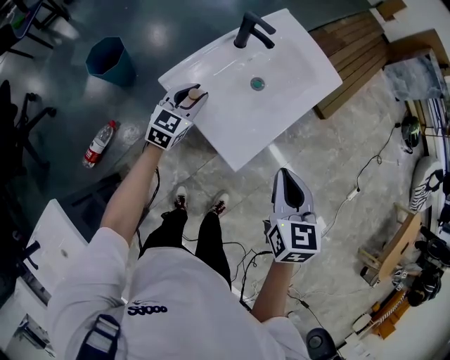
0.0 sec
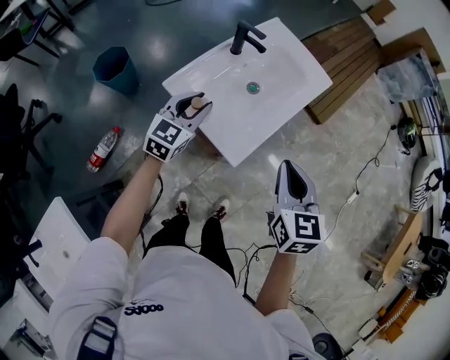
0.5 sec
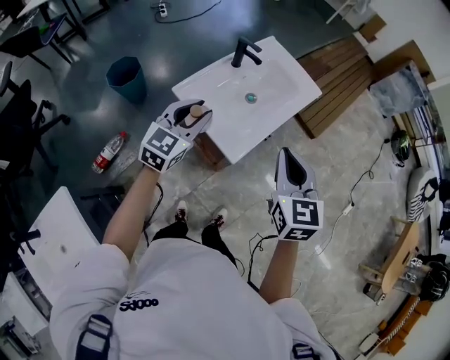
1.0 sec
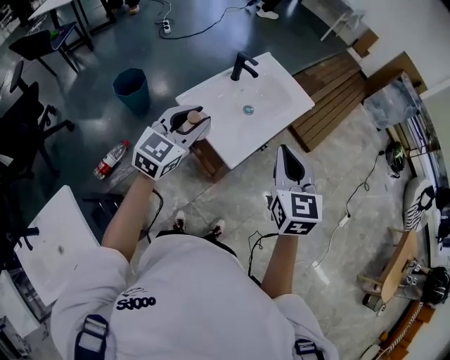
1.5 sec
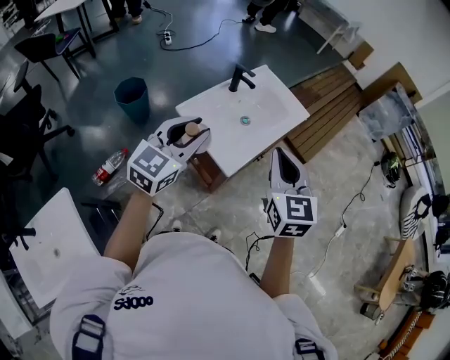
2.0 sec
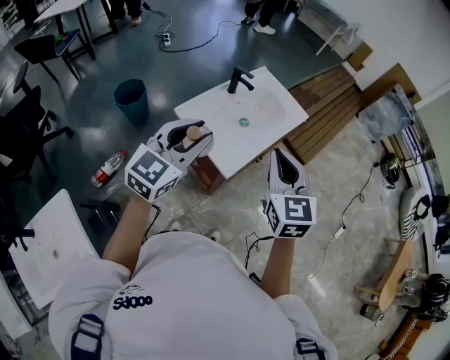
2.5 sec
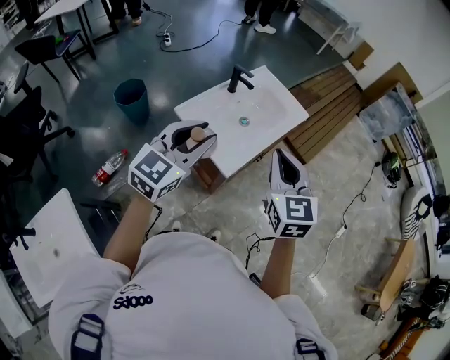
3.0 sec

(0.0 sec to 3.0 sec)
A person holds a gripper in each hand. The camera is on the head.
0.0 sec - 1.5 sec: The left gripper shifts some 30 cm upward and backward; the right gripper is displaced upward by about 15 cm.
1.5 sec - 3.0 sec: The left gripper travels upward by roughly 5 cm.

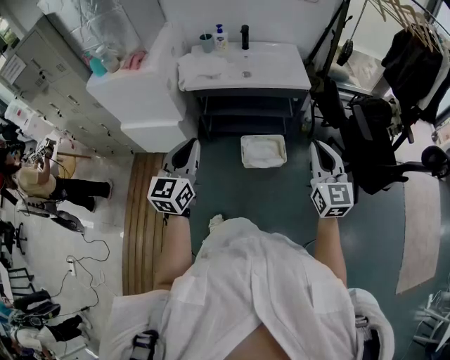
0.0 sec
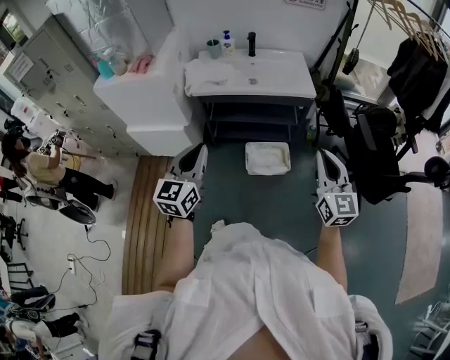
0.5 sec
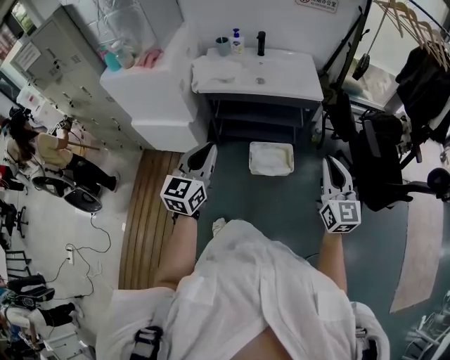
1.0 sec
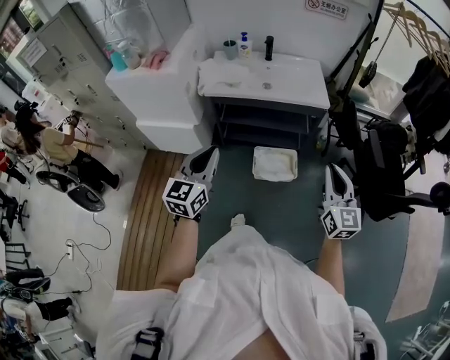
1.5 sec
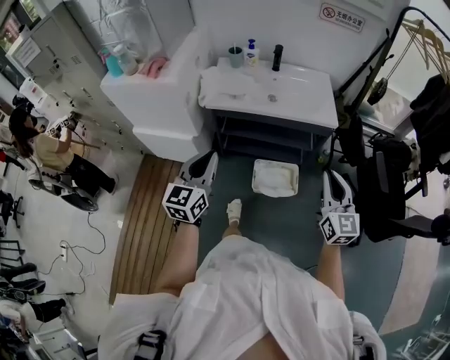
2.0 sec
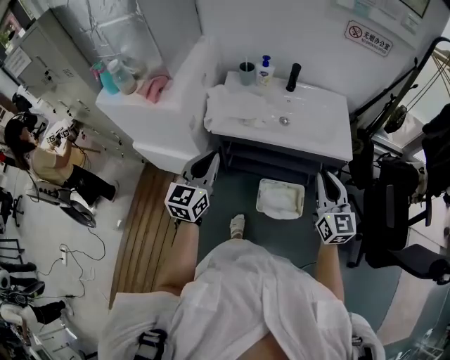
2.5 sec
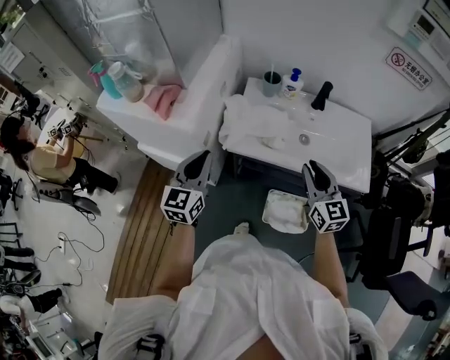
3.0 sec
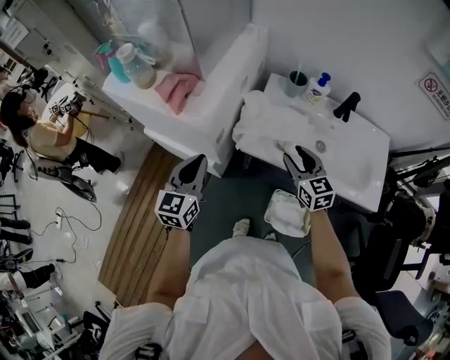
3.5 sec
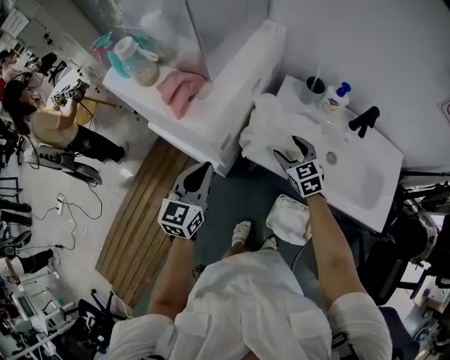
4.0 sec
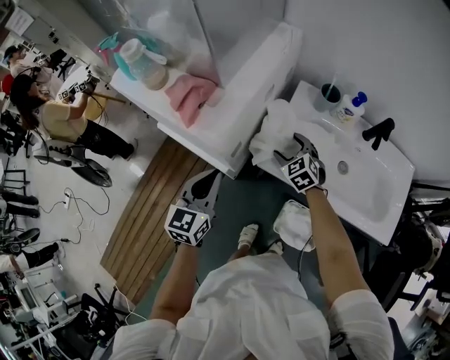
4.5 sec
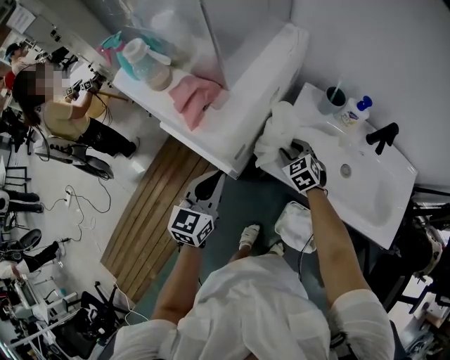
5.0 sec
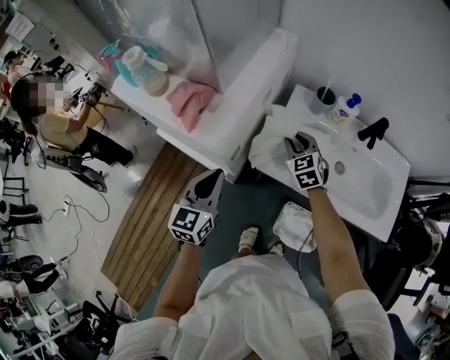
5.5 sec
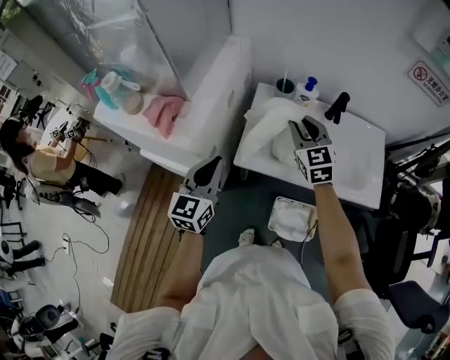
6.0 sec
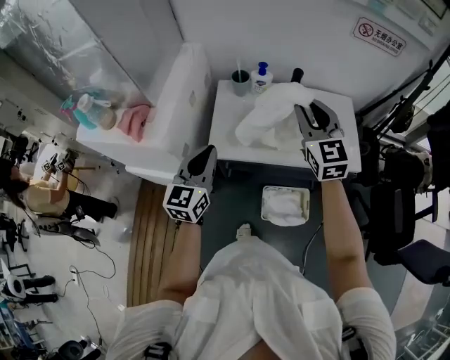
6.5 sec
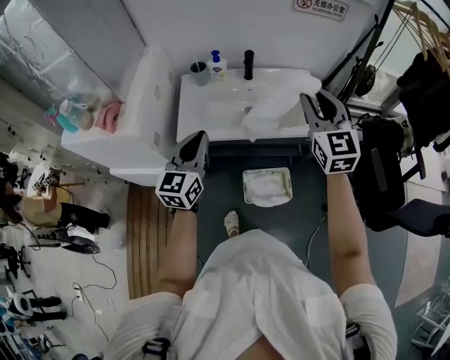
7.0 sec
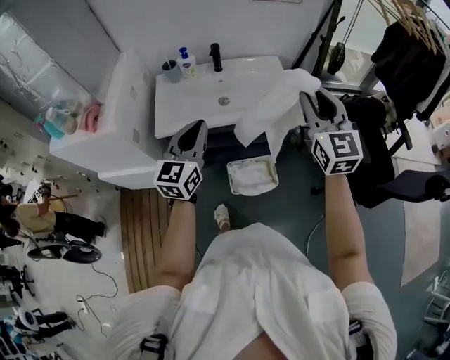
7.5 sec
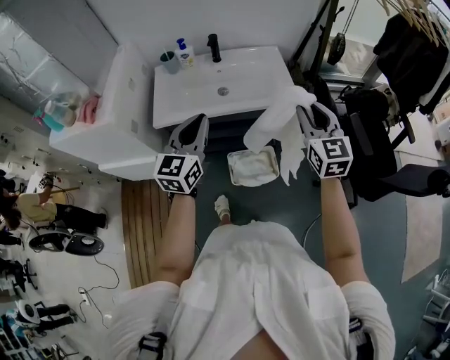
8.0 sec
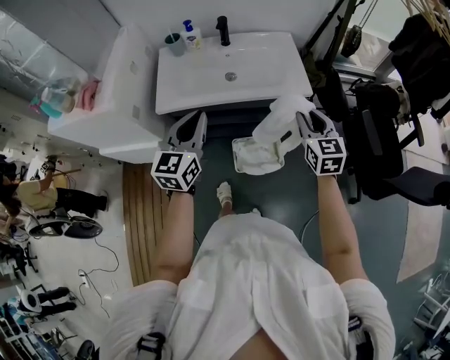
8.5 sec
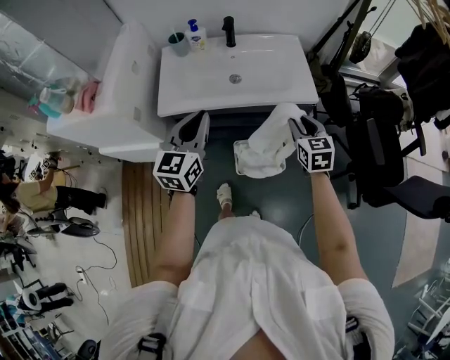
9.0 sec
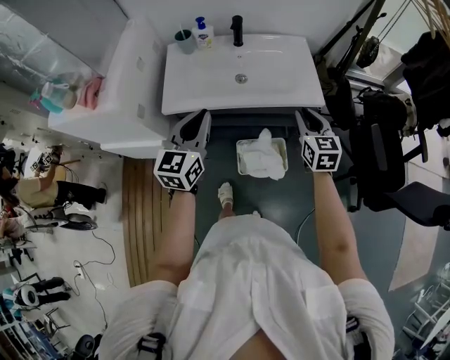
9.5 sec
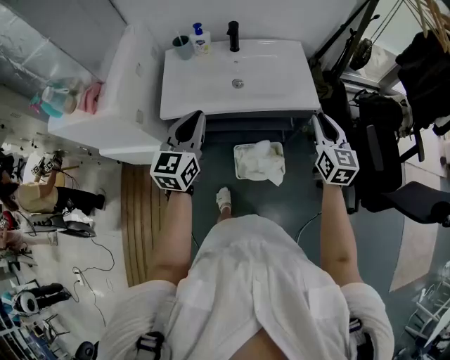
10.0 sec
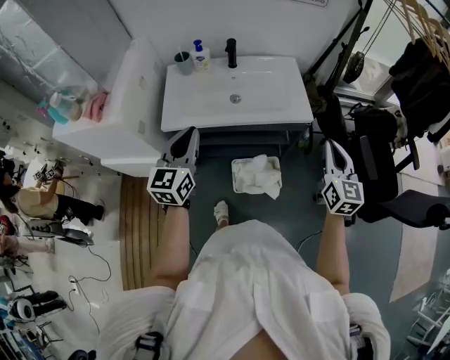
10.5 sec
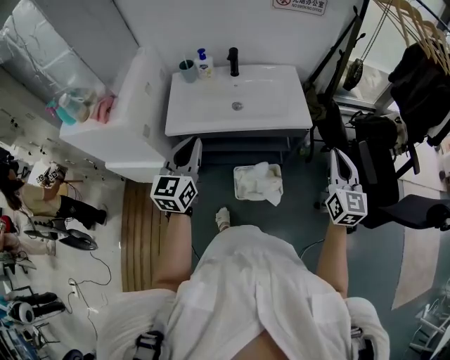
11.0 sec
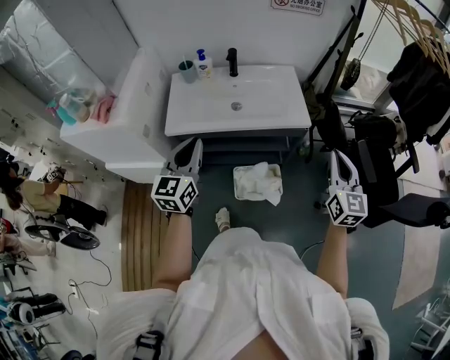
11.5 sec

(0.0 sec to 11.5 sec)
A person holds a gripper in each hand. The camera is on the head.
0.0 sec - 2.0 sec: The grippers both shift forward by roughly 10 cm.
2.0 sec - 4.0 sec: The right gripper moves approximately 70 cm, tilts its fingers some 30 degrees downward, and opens. The left gripper shifts by about 40 cm, and swivels about 20 degrees.
4.0 sec - 6.0 sec: The left gripper heads to the right and upward, covering some 10 cm. The right gripper moves upward and to the right, about 20 cm, rotates some 30 degrees, and closes its fingers.
6.0 sec - 7.5 sec: The right gripper goes roughly 50 cm to the right, backward and upward, and changes its angle by roughly 30 degrees, while the left gripper heads to the right and backward, covering about 30 cm, and changes its angle by some 20 degrees.
7.5 sec - 9.5 sec: The left gripper moves downward, some 5 cm. The right gripper heads downward, covering approximately 25 cm, and changes its angle by approximately 30 degrees.
9.5 sec - 11.5 sec: The left gripper is displaced backward by some 5 cm; the right gripper travels backward, to the right and upward by roughly 20 cm, and changes its angle by some 20 degrees.

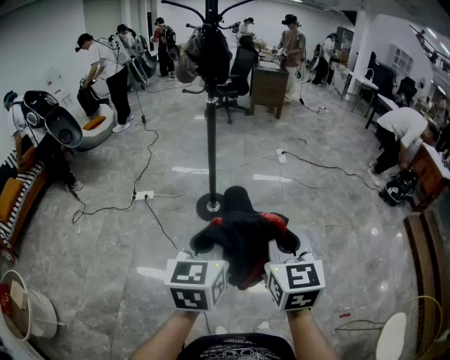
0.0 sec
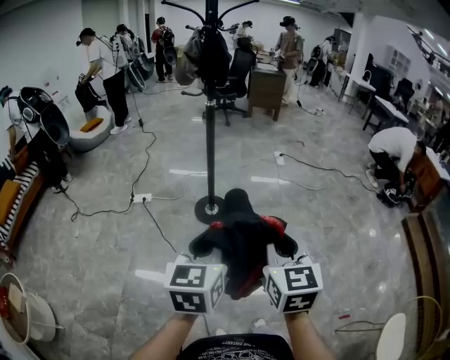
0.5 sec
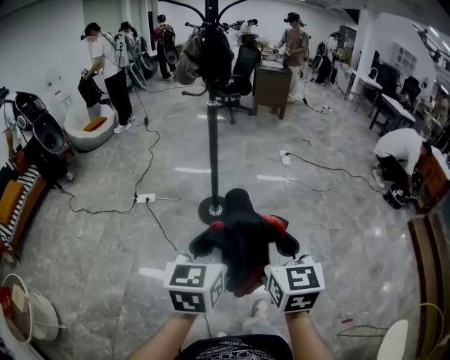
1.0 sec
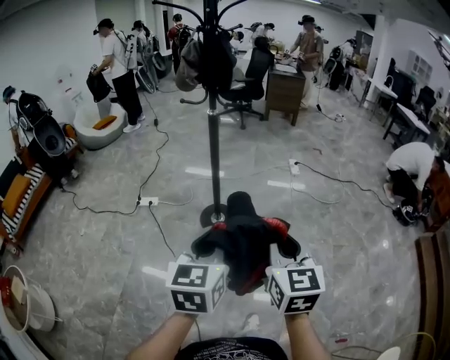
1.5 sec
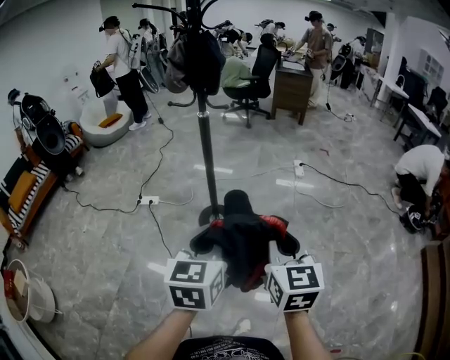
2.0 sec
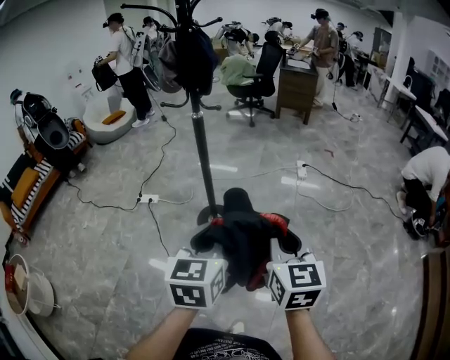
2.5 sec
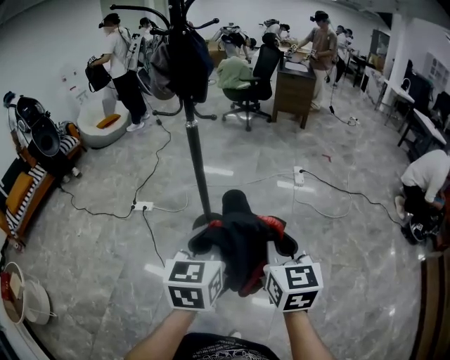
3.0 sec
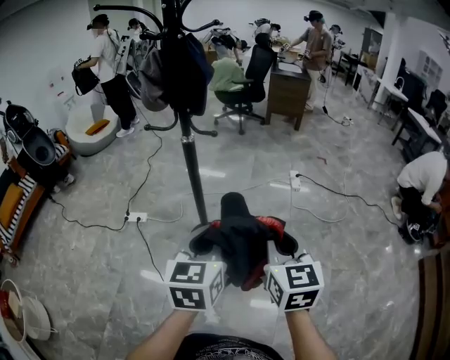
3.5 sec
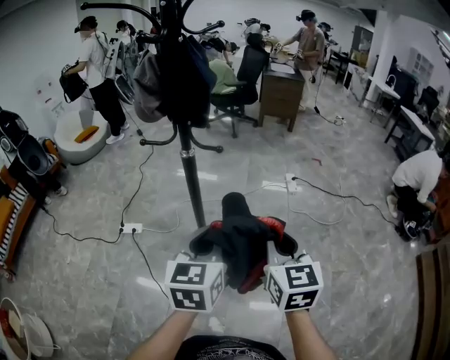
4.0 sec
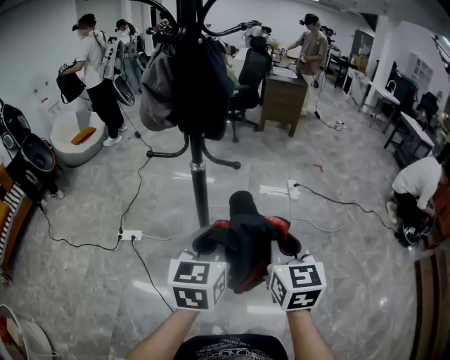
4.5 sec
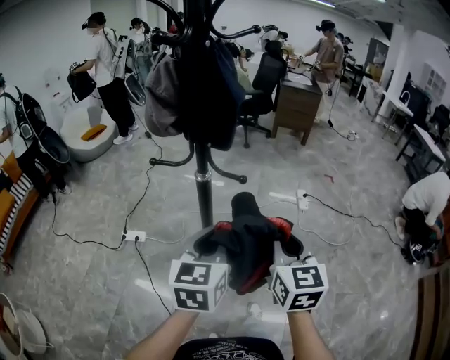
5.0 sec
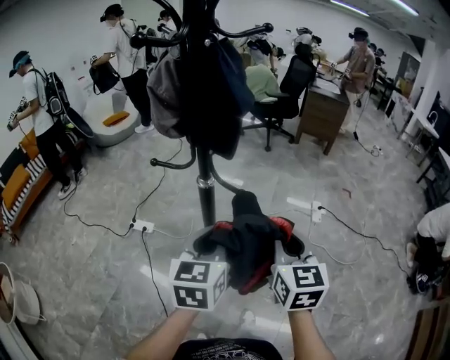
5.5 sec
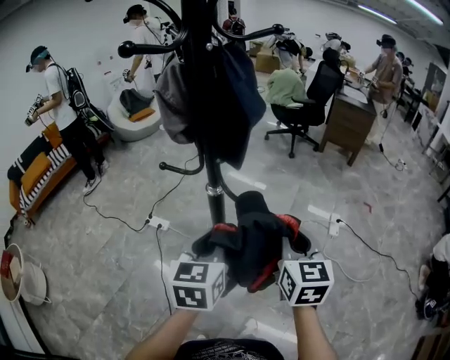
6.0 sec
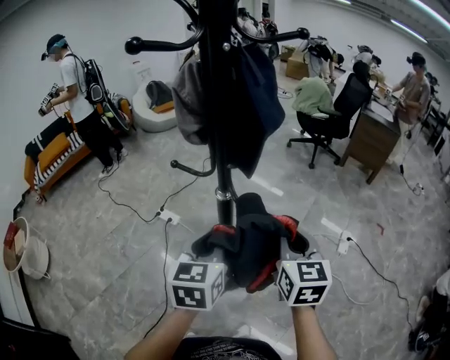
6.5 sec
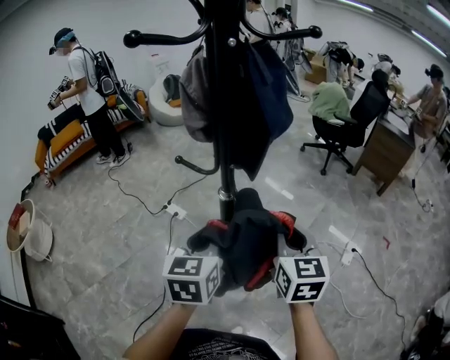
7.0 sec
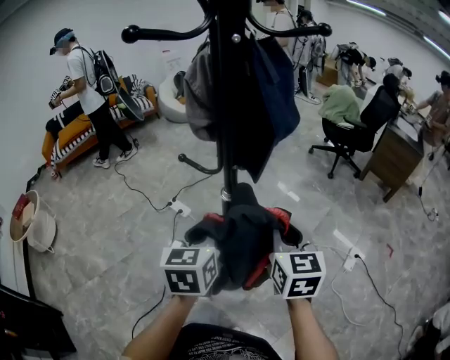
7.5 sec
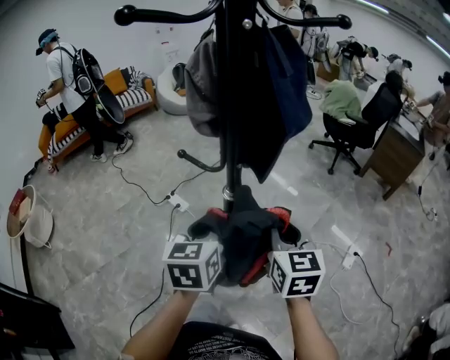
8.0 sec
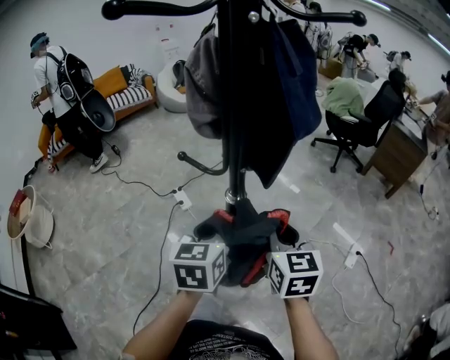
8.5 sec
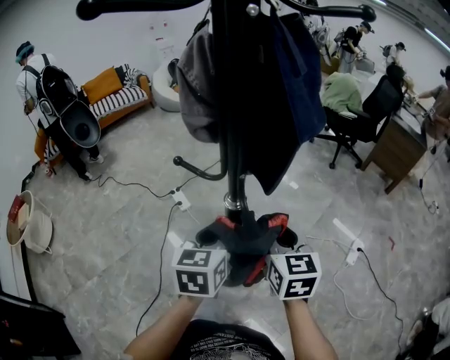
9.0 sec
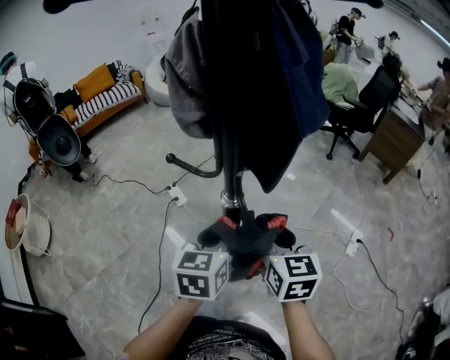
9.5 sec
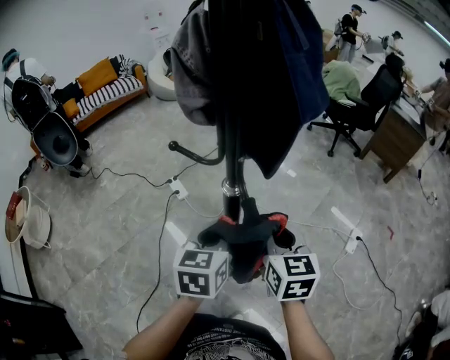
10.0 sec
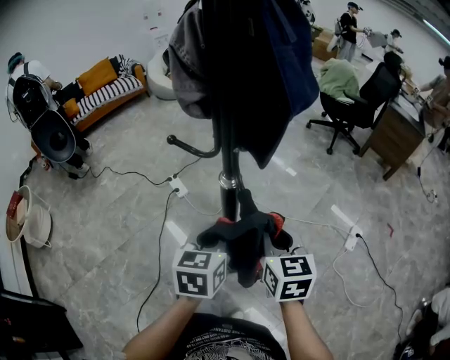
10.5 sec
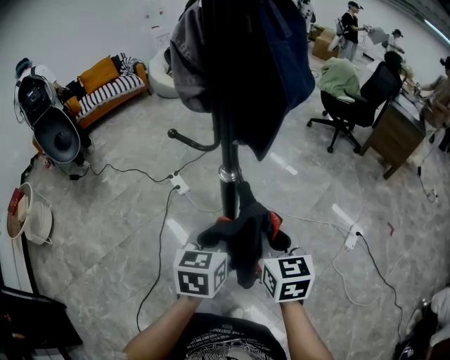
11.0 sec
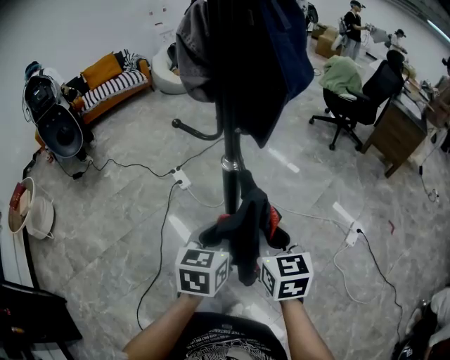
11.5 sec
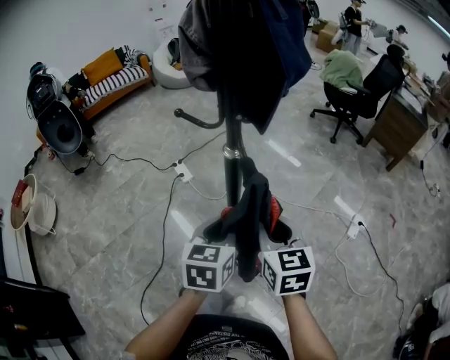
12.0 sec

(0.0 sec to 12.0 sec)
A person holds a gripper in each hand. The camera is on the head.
0.0 sec - 2.0 sec: Both grippers move forward and to the right, about 20 cm.
2.0 sec - 4.0 sec: Both grippers travel together forward, approximately 25 cm.
4.0 sec - 6.0 sec: Both grippers travel together forward, roughly 20 cm. The left gripper turns by approximately 20 degrees.
6.0 sec - 8.0 sec: Both grippers move forward, some 10 cm. The left gripper rotates some 20 degrees. Meanwhile the right gripper swivels roughly 20 degrees.
8.0 sec - 10.0 sec: The grippers both shift downward by roughly 5 cm.
10.0 sec - 12.0 sec: Both grippers move backward, approximately 10 cm.
